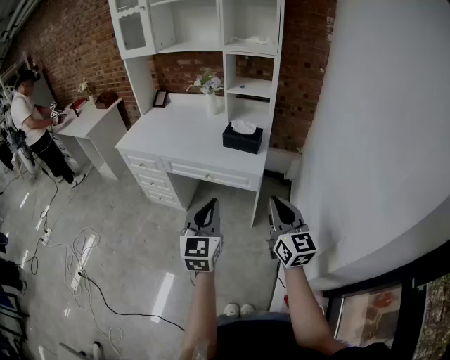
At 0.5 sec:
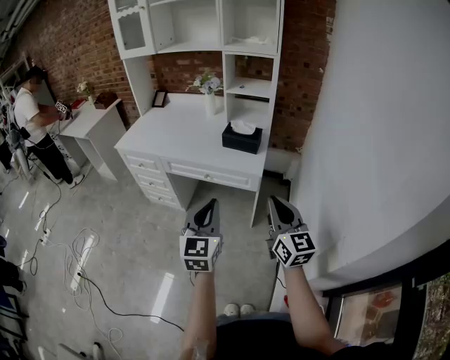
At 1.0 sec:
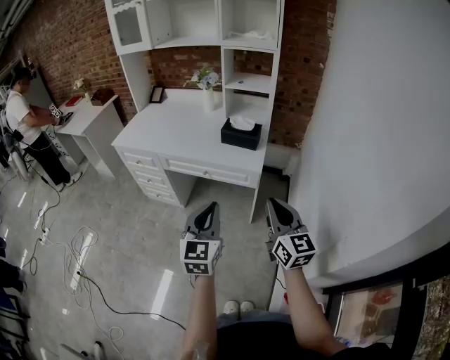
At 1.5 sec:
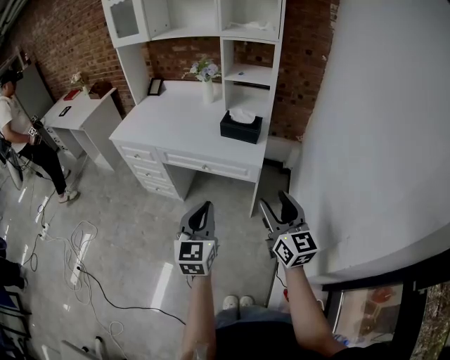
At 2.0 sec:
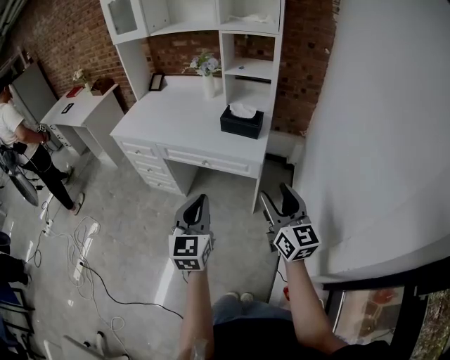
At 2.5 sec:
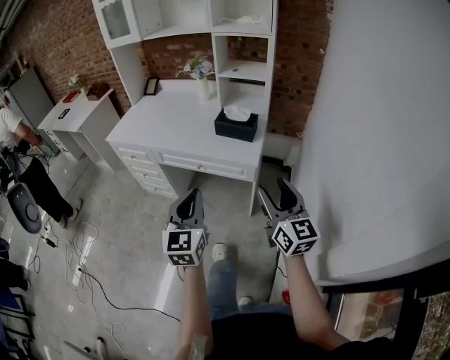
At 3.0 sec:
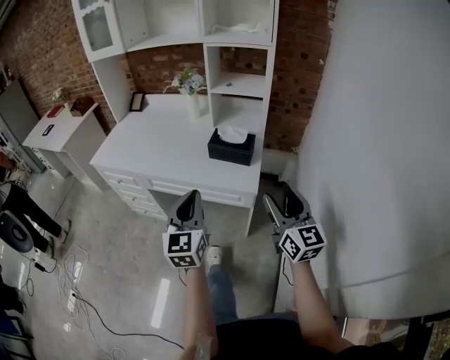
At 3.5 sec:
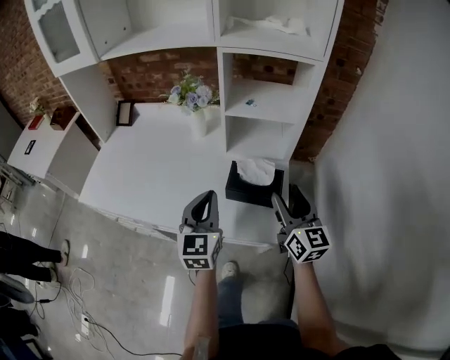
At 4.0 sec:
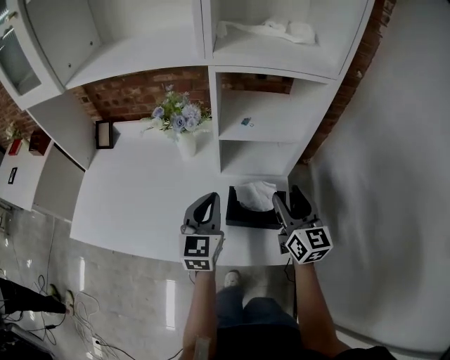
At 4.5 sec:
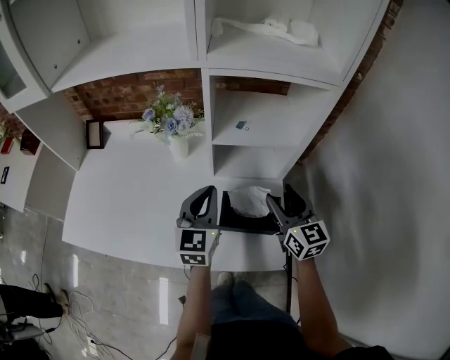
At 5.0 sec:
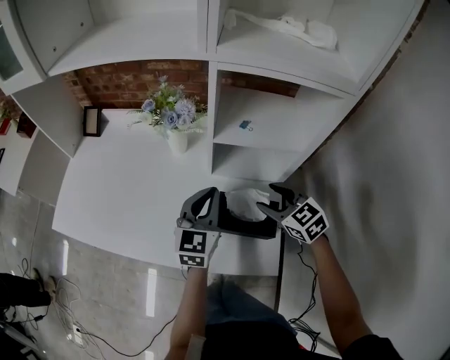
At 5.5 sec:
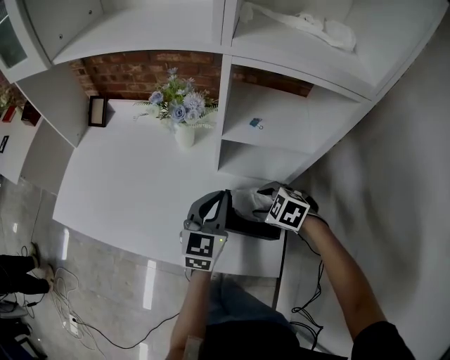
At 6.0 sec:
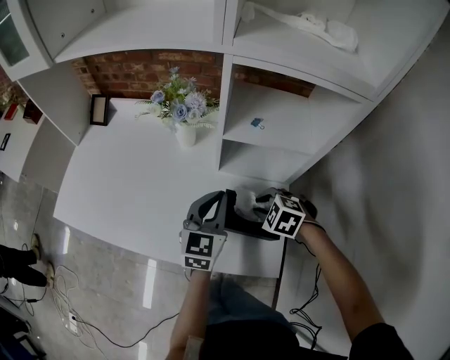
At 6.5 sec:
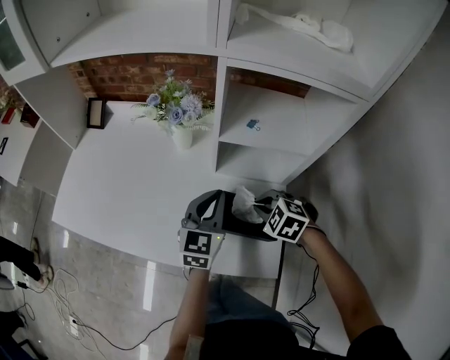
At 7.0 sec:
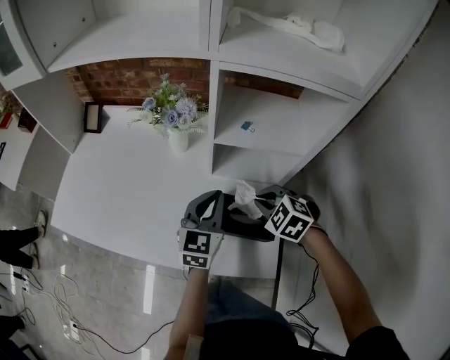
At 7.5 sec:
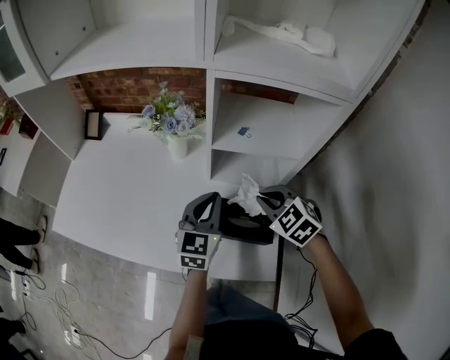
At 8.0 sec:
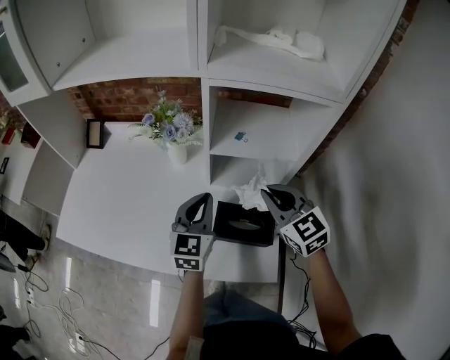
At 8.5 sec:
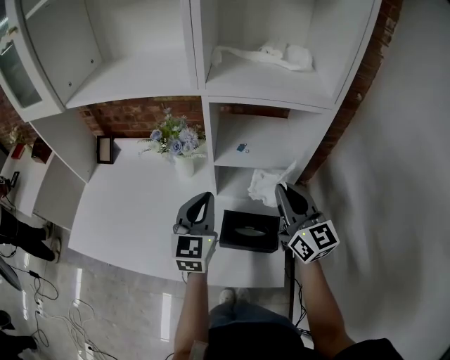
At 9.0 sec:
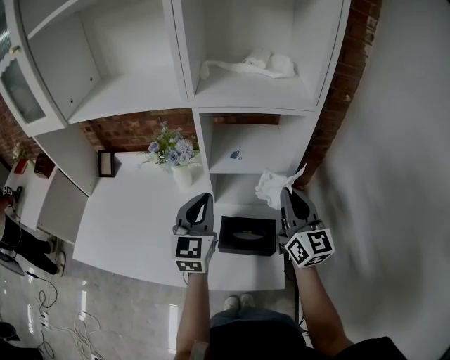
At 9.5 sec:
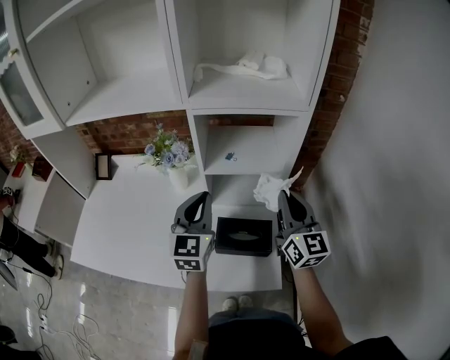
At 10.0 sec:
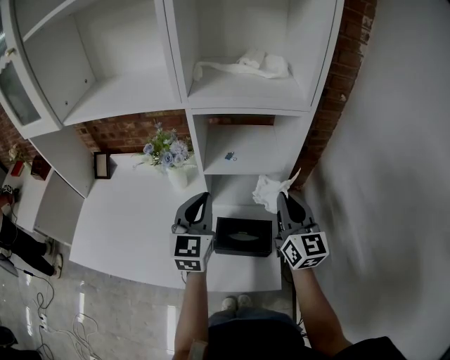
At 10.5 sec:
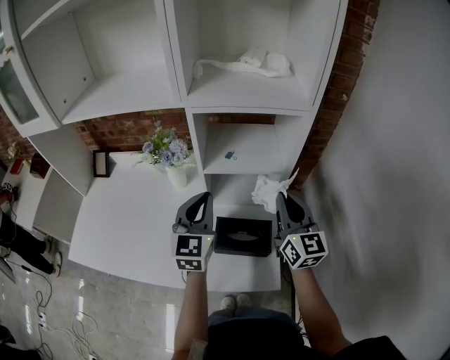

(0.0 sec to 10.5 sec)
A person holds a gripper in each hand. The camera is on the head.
0.0 sec - 2.0 sec: The right gripper opens up.
2.0 sec - 4.0 sec: The pair of grippers is taken forward, some 50 cm.
4.0 sec - 6.5 sec: The left gripper changes place by some 5 cm, while the right gripper goes about 15 cm downward, tips its fingers downward by approximately 60 degrees, and closes its fingers.
6.5 sec - 8.5 sec: The left gripper moves upward, approximately 10 cm; the right gripper moves upward, some 20 cm, and points its fingers roughly 70 degrees further upward.
8.5 sec - 10.5 sec: The right gripper ends up roughly 5 cm from where it was.

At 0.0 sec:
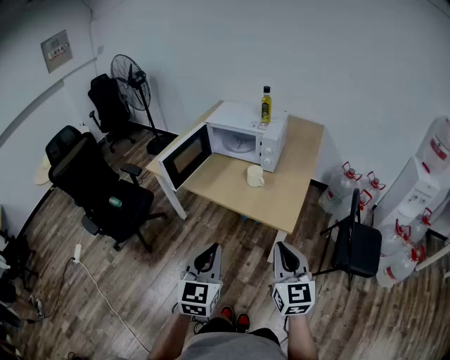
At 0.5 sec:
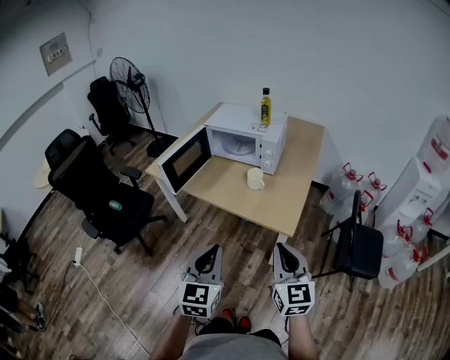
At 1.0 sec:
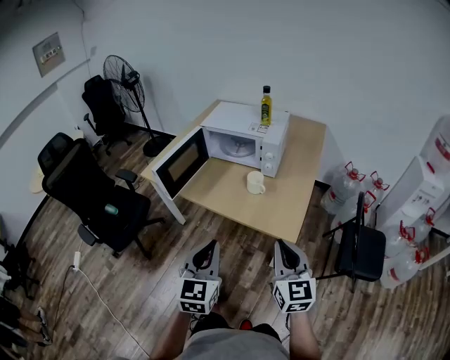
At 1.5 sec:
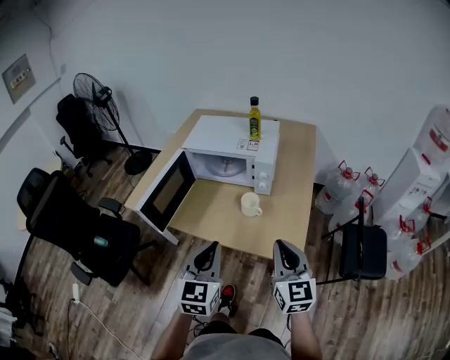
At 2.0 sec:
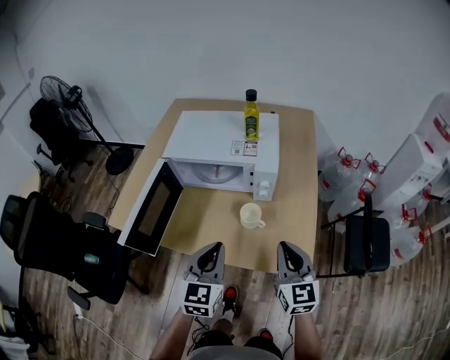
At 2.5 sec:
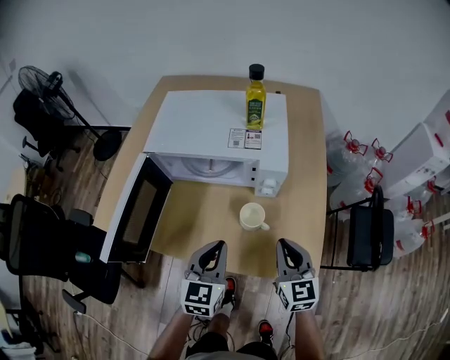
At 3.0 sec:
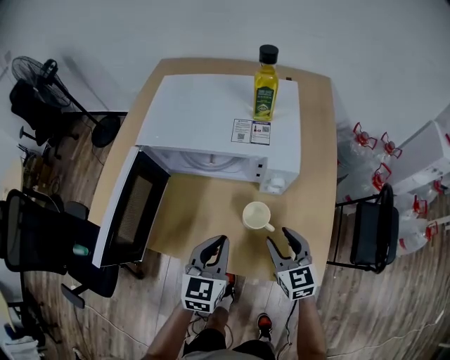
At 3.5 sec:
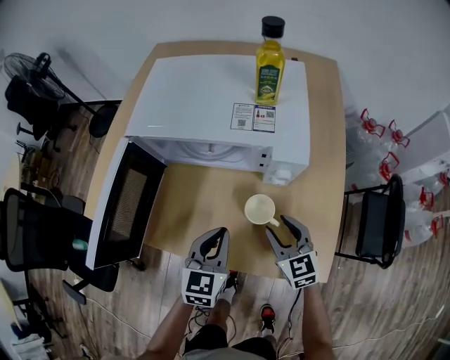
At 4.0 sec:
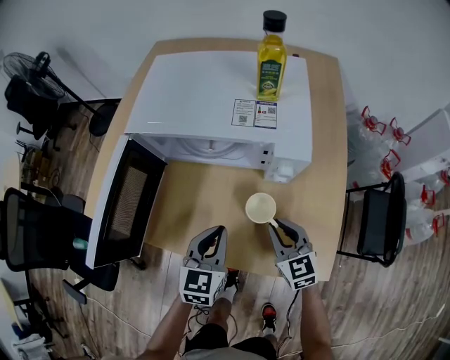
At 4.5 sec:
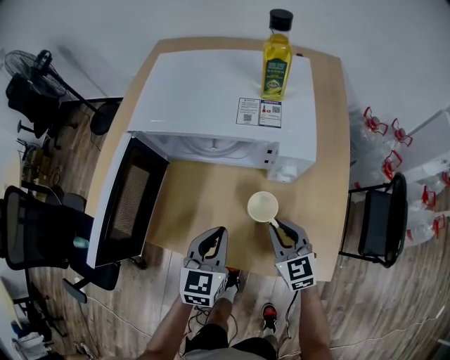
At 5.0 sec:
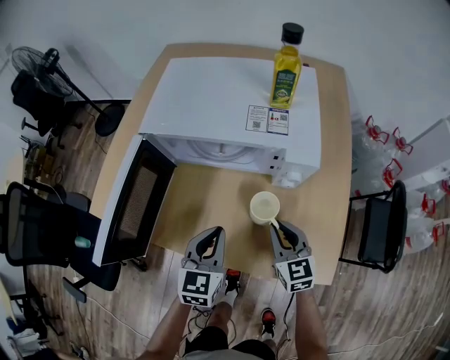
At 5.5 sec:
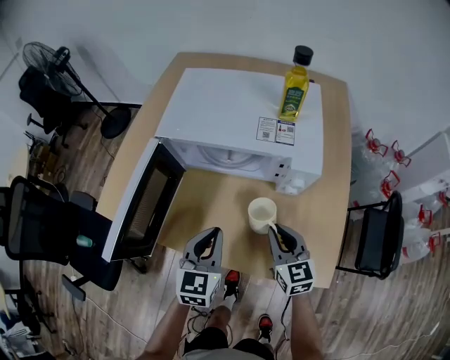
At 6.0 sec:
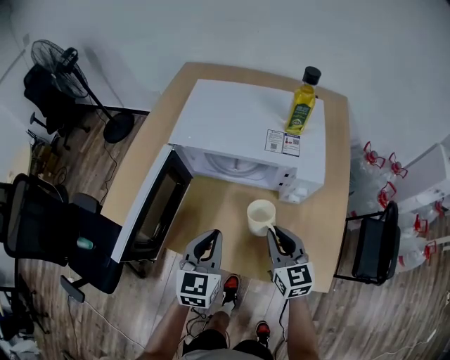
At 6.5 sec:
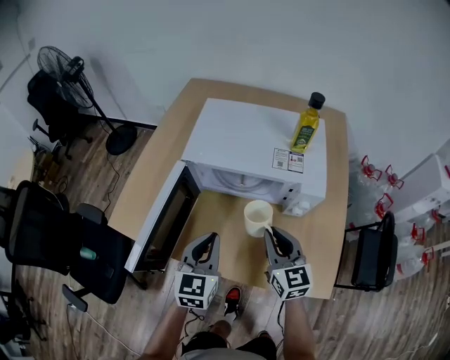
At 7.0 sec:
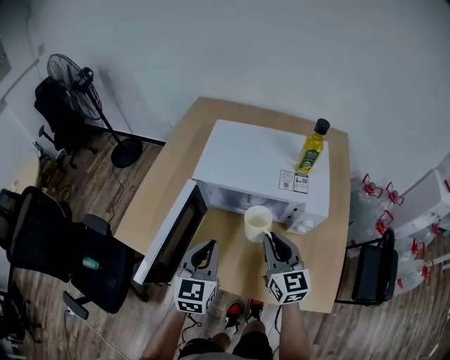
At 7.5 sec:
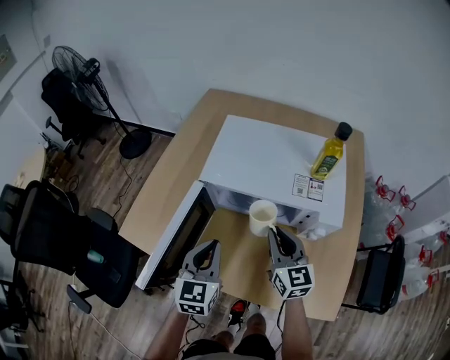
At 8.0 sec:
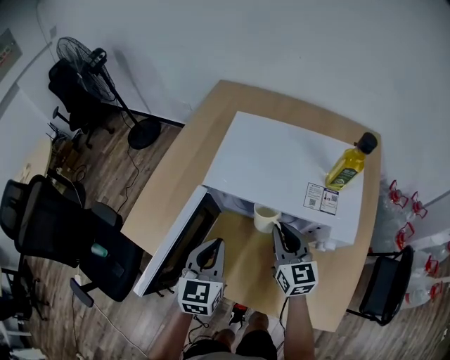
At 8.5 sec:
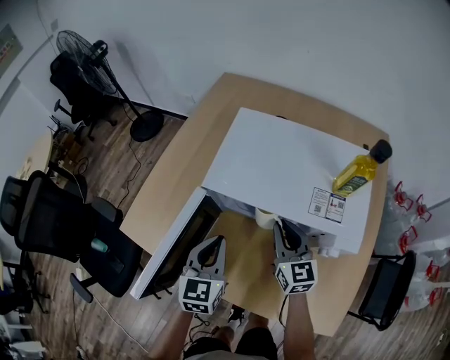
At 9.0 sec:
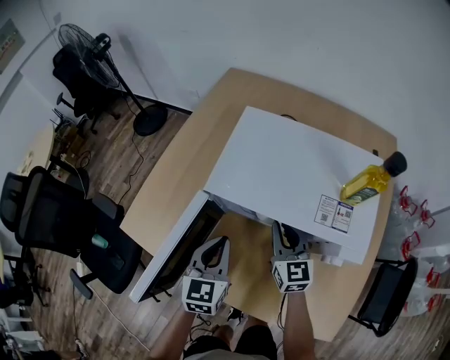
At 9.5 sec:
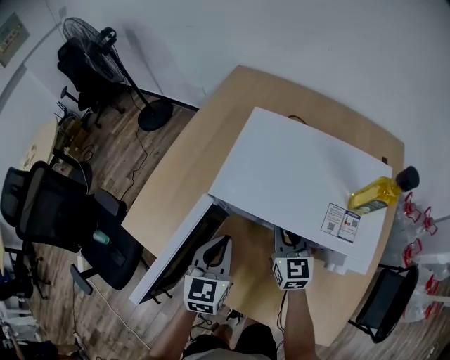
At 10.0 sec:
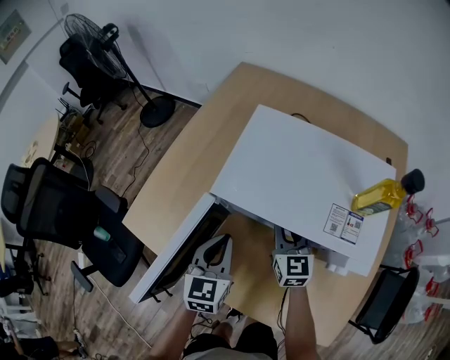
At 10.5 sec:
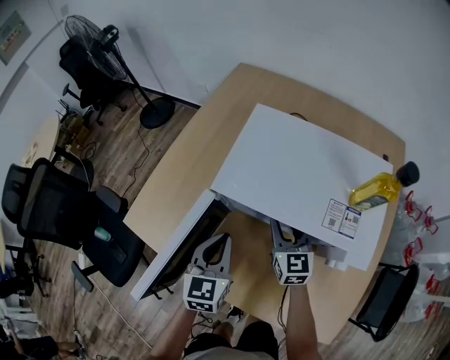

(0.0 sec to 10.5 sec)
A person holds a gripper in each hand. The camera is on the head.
0.0 sec - 2.0 sec: The grippers both shift forward by about 35 cm.
2.0 sec - 4.0 sec: The grippers both shift downward and forward by about 20 cm. The right gripper rotates about 20 degrees, and opens, then closes again.
4.0 sec - 6.5 sec: The left gripper moves to the left and upward, roughly 15 cm. The right gripper moves upward and to the left, some 15 cm.
6.5 sec - 8.5 sec: The left gripper moves forward, some 10 cm. Meanwhile the right gripper heads forward, covering about 15 cm.
8.5 sec - 10.5 sec: The right gripper changes place by roughly 5 cm, and opens up.

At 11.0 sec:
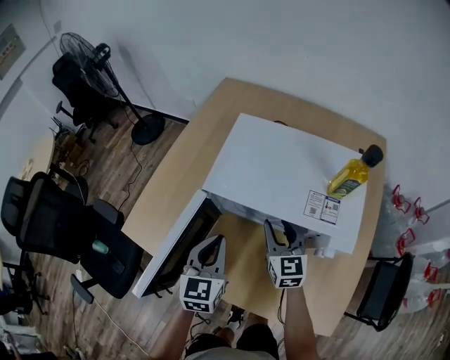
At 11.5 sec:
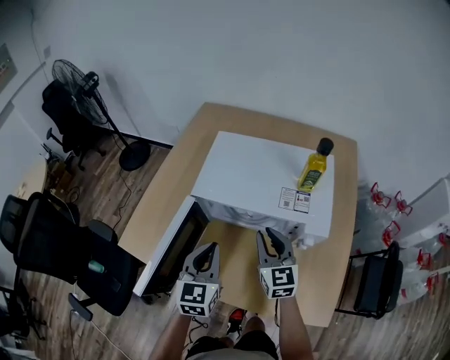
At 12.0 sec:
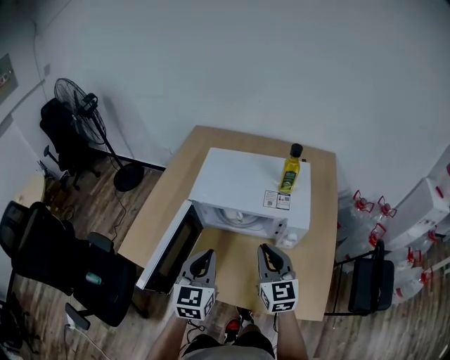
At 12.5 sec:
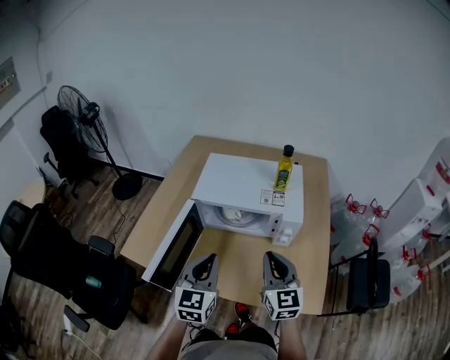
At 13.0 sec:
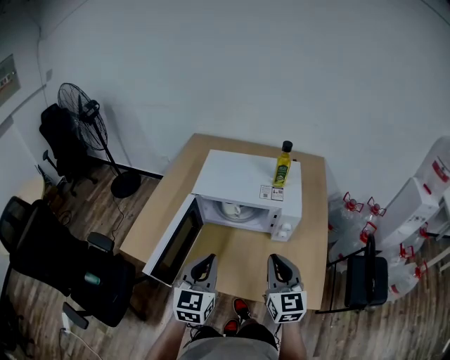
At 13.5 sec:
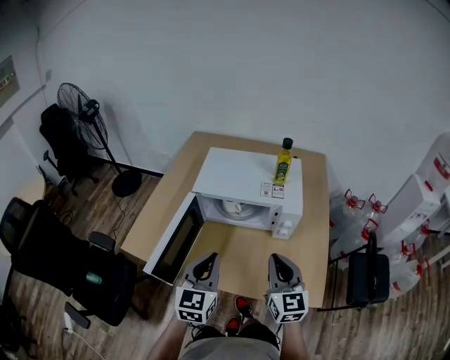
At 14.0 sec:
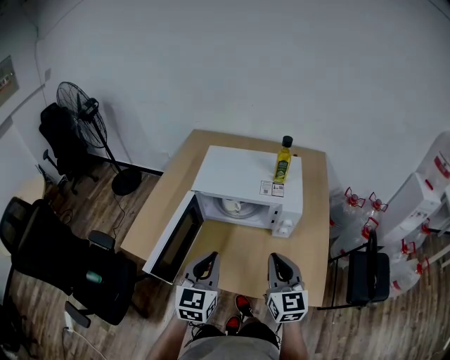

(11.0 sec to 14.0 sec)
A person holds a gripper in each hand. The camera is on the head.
11.0 sec - 12.5 sec: The two grippers go about 20 cm backward and upward. The right gripper closes its fingers.
12.5 sec - 14.0 sec: There are only small adjustments of the grippers.

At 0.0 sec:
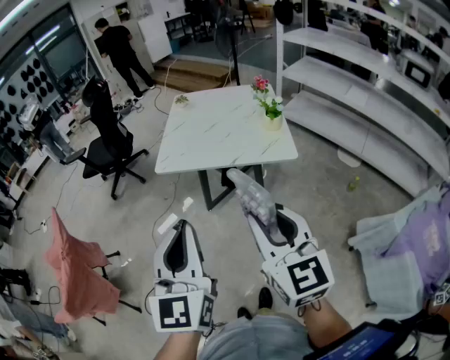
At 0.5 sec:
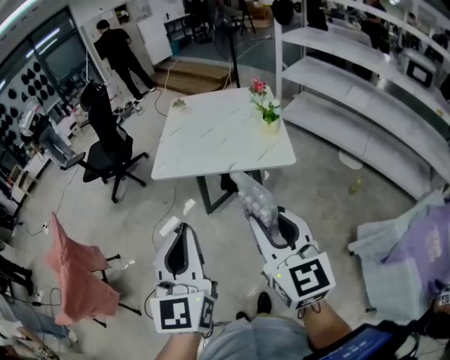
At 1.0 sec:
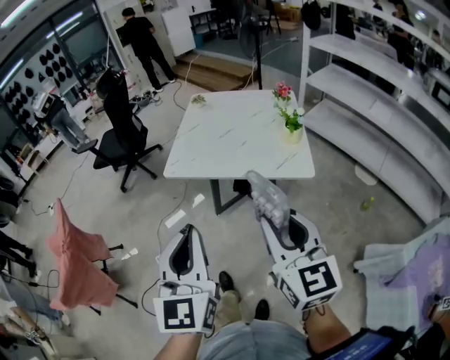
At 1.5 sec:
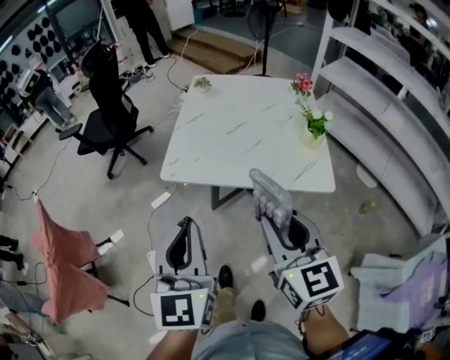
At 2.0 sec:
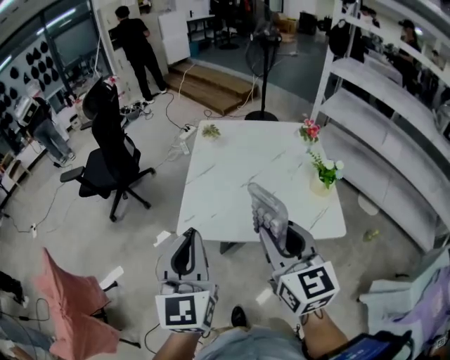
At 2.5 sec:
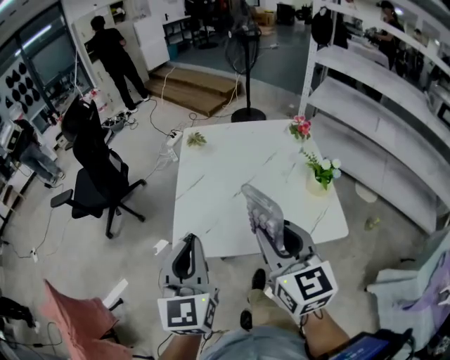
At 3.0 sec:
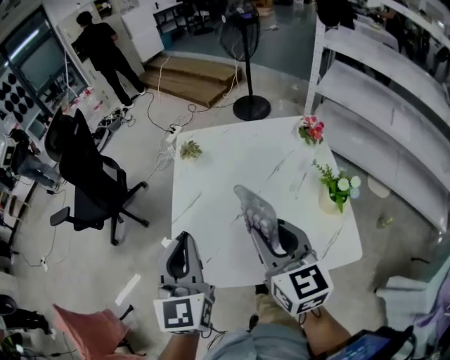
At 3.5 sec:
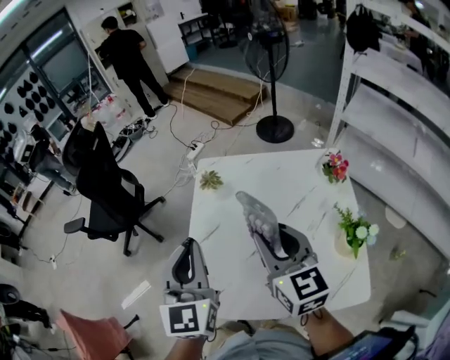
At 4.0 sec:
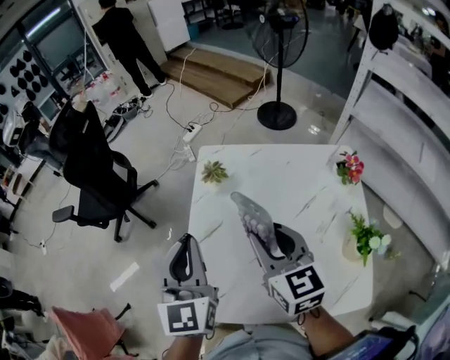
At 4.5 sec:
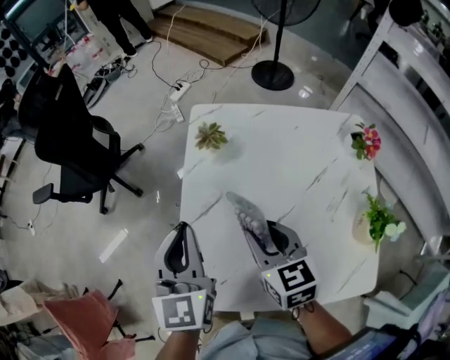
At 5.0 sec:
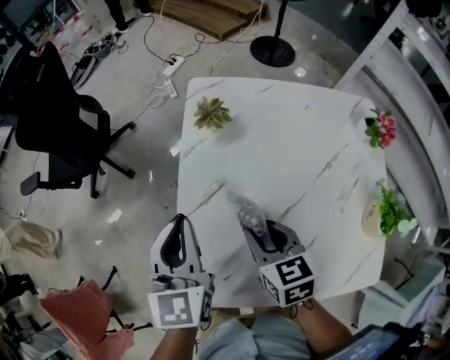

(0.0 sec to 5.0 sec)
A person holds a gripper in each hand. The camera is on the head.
0.0 sec - 2.5 sec: Both grippers travel together forward, approximately 40 cm.
2.5 sec - 5.0 sec: The two grippers go about 35 cm forward and downward. The right gripper angles its fingers downward, by roughly 30 degrees.
